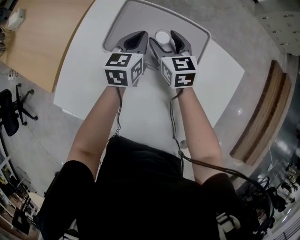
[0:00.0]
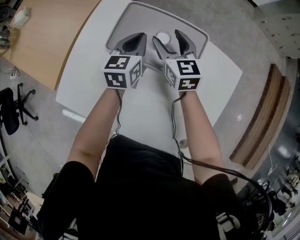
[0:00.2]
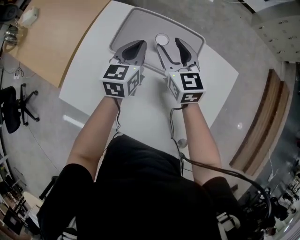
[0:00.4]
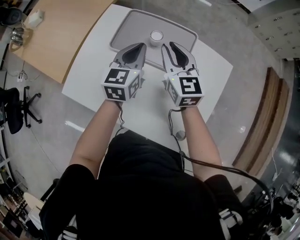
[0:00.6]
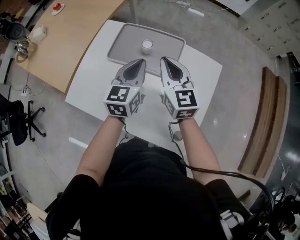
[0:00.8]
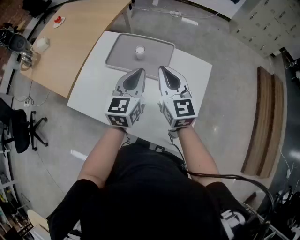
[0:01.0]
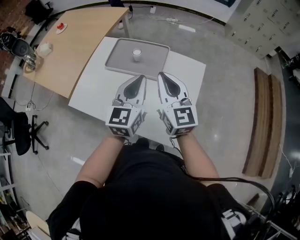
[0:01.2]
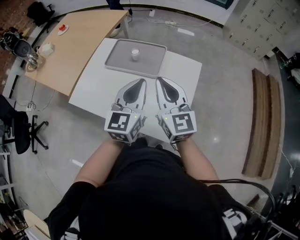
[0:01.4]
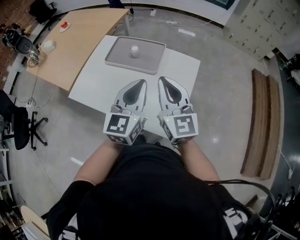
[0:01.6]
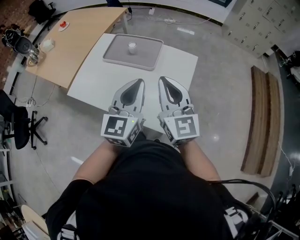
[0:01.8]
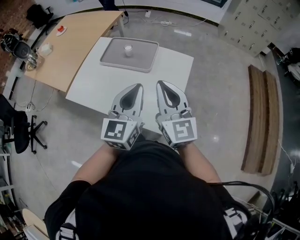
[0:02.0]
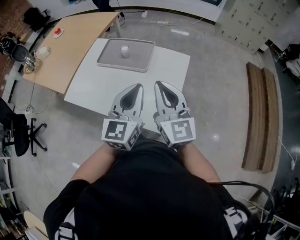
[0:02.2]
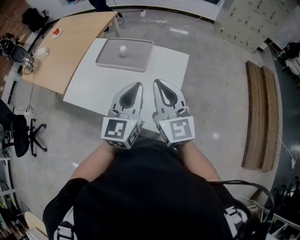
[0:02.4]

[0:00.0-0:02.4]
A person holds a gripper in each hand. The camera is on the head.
0:00.0 to 0:01.2: Both grippers travel together backward and upward, about 40 cm. The right gripper changes its angle by some 30 degrees, and closes up, while the left gripper rotates some 20 degrees.
0:01.2 to 0:02.4: Both grippers move backward and to the right, about 15 cm.

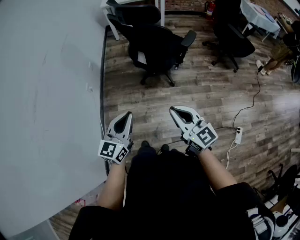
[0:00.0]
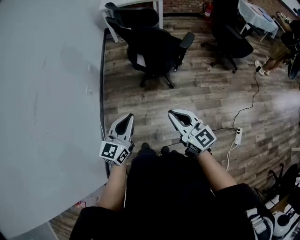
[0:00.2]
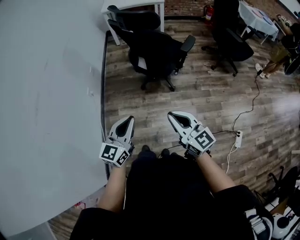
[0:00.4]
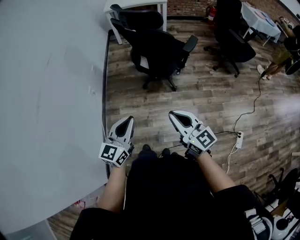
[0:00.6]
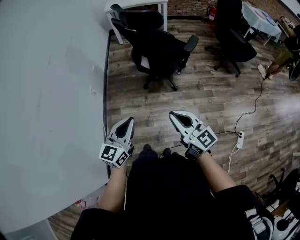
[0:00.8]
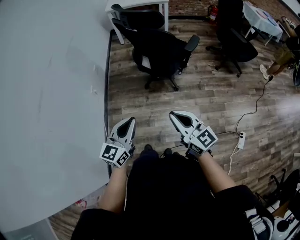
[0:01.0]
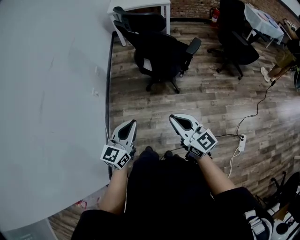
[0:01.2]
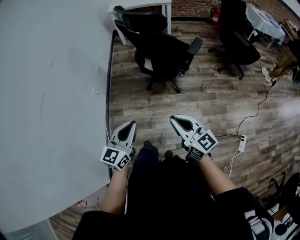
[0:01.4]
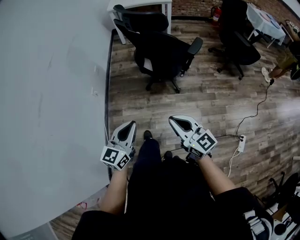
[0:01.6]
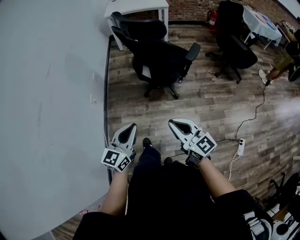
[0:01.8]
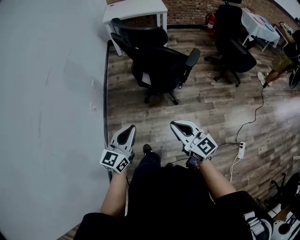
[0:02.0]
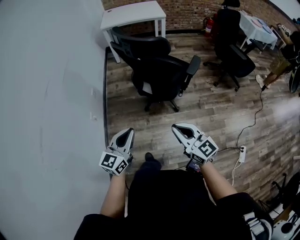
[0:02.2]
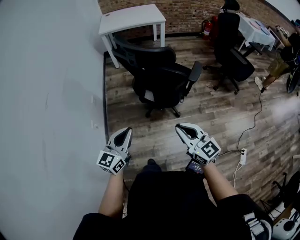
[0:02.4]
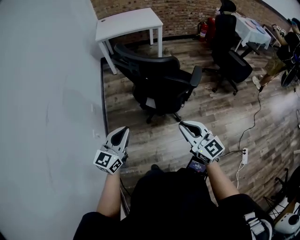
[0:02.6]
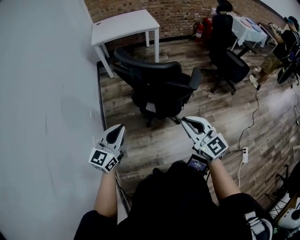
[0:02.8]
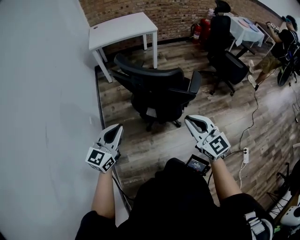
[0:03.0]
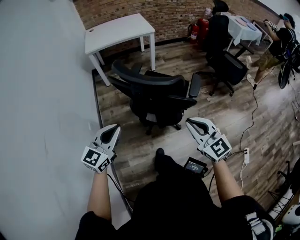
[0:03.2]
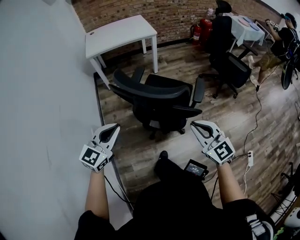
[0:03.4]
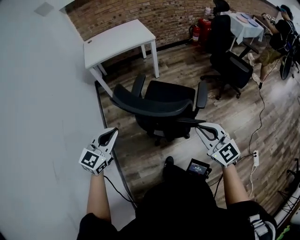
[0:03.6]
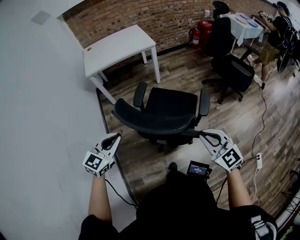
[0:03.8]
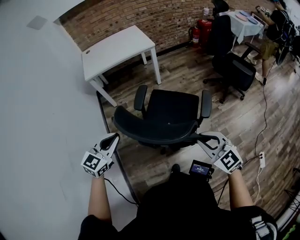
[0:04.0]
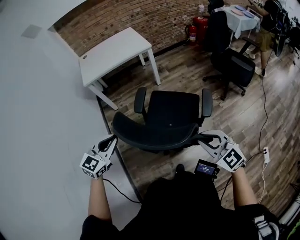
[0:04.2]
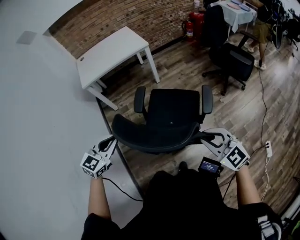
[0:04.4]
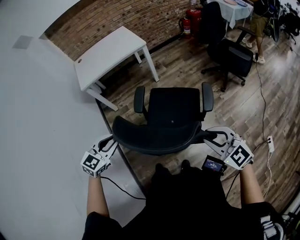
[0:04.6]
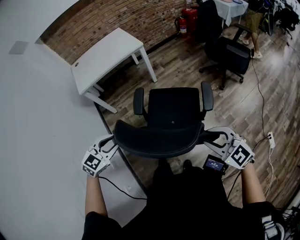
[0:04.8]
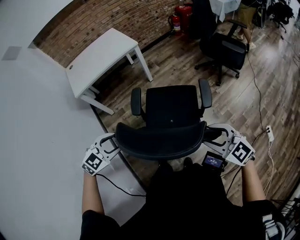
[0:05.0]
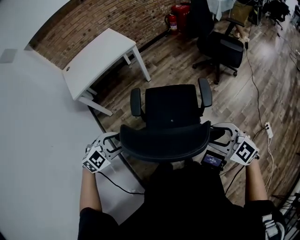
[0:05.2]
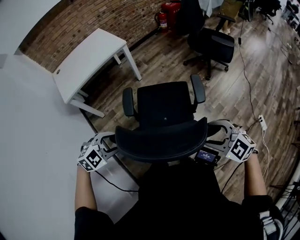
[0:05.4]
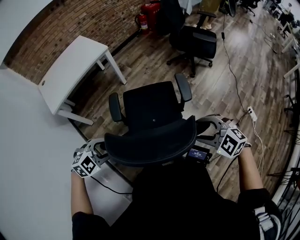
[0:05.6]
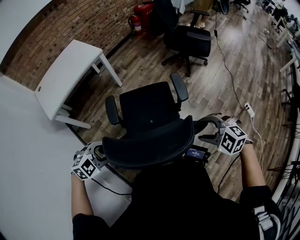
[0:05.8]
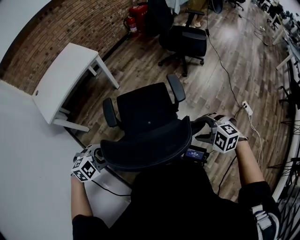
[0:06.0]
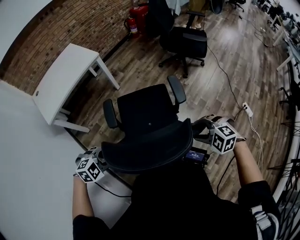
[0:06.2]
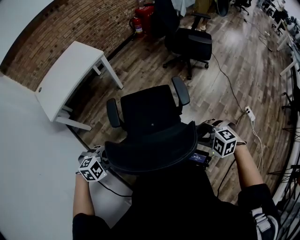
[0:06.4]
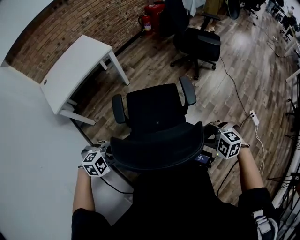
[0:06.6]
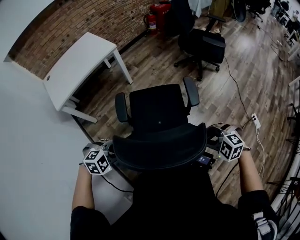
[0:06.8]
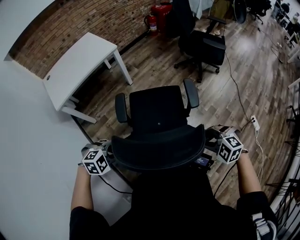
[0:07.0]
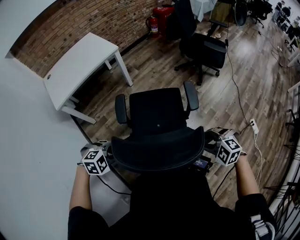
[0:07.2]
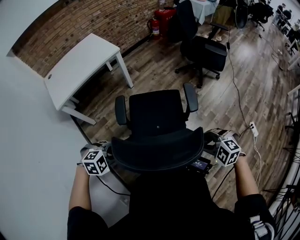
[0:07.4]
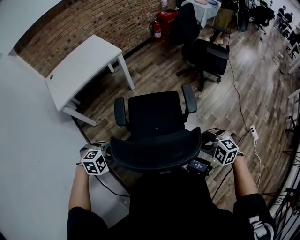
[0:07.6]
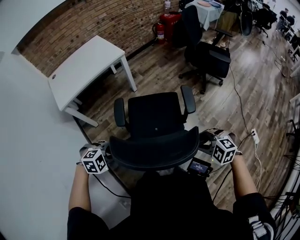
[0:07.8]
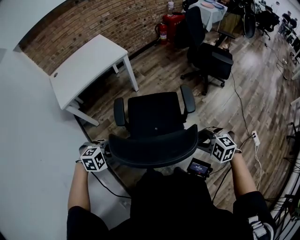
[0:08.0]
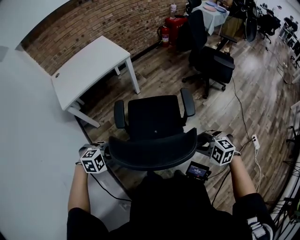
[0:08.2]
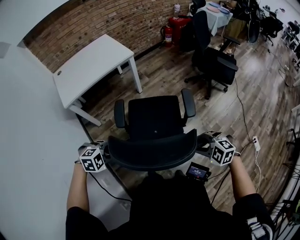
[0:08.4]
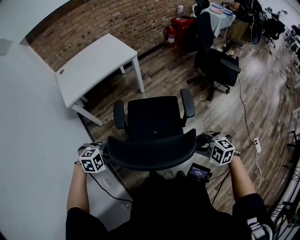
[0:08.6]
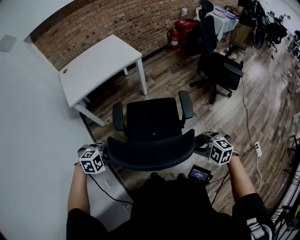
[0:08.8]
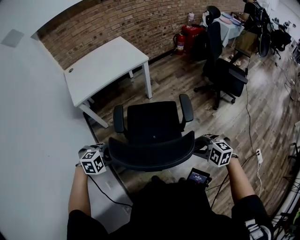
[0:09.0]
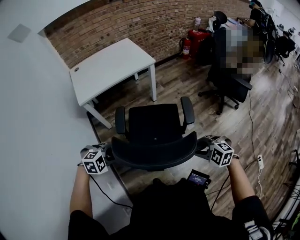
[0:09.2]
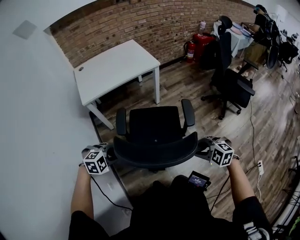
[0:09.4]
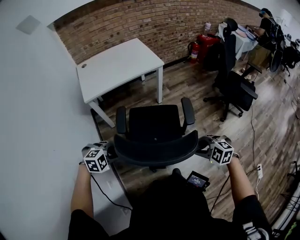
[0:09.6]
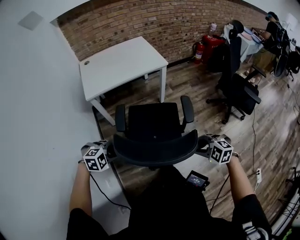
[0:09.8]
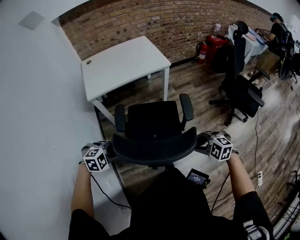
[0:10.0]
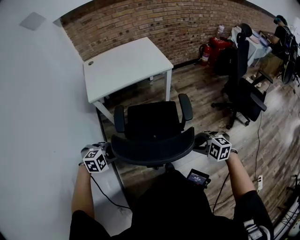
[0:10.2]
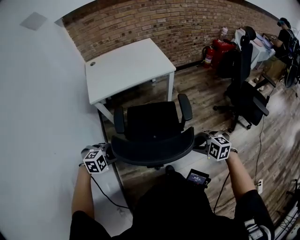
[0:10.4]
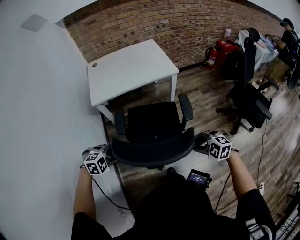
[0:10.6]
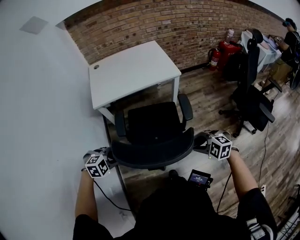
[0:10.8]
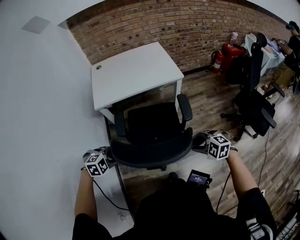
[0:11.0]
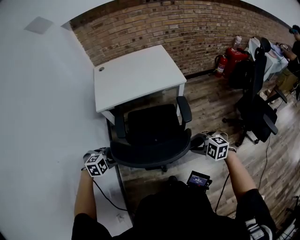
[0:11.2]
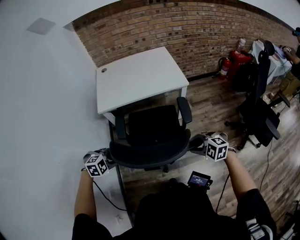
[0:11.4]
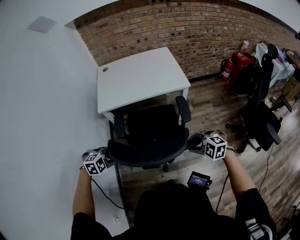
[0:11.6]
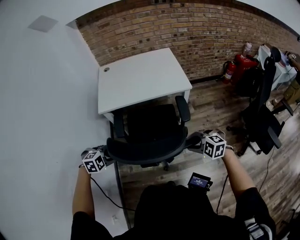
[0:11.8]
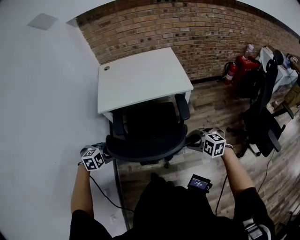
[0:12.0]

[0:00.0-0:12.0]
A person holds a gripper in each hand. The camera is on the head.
0:00.0 to 0:01.6: The grippers stay close to where they were, moving slightly.
0:01.6 to 0:03.0: The grippers both shift forward by some 35 cm. The right gripper rotates approximately 30 degrees.
0:03.0 to 0:04.4: The right gripper travels forward by some 20 cm. The left gripper travels forward by approximately 30 cm, and swivels approximately 30 degrees.
0:04.4 to 0:06.0: Both grippers travel together downward, roughly 10 cm. The left gripper angles its fingers downward, by some 30 degrees, and opens its fingers; the right gripper tips its fingers downward by about 40 degrees, and opens.
0:06.0 to 0:07.6: The right gripper closes. The left gripper closes its fingers.
0:07.6 to 0:09.0: The left gripper shifts by approximately 15 cm. The right gripper changes place by about 15 cm.
0:09.0 to 0:10.4: The left gripper shifts by about 10 cm; the right gripper shifts by approximately 20 cm.
0:10.4 to 0:12.0: The right gripper moves approximately 20 cm, while the left gripper changes place by about 15 cm.

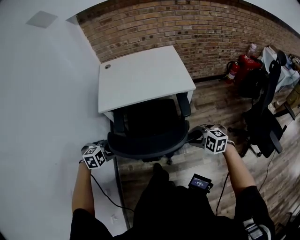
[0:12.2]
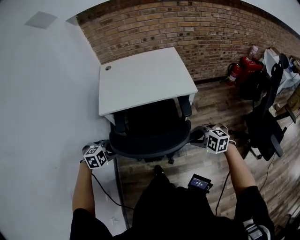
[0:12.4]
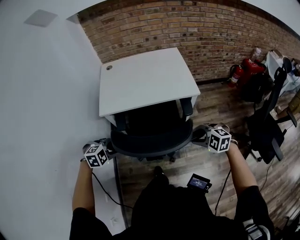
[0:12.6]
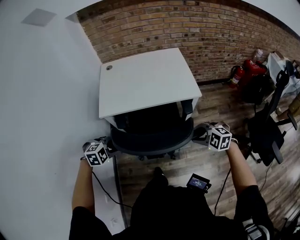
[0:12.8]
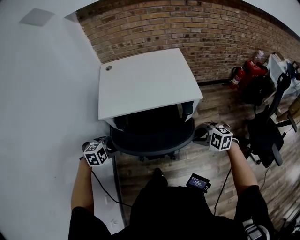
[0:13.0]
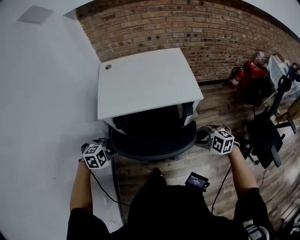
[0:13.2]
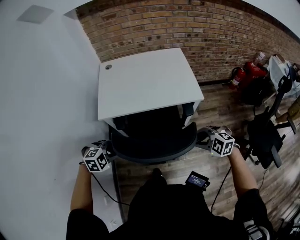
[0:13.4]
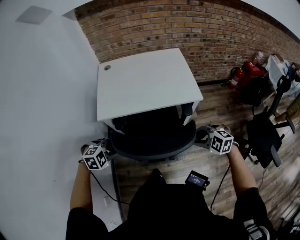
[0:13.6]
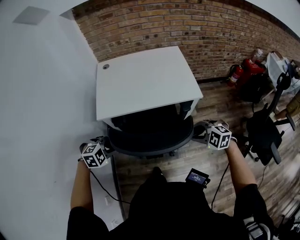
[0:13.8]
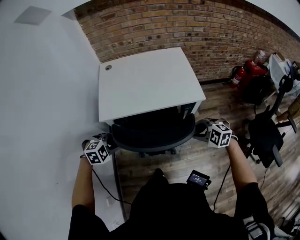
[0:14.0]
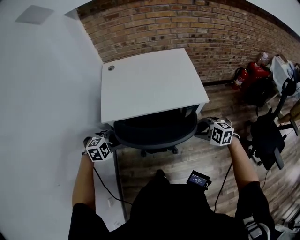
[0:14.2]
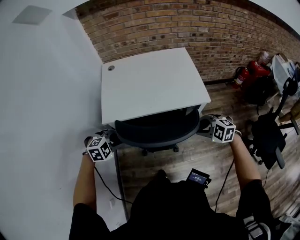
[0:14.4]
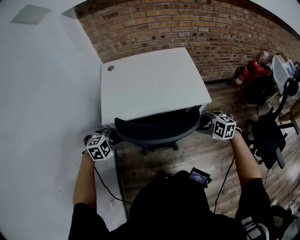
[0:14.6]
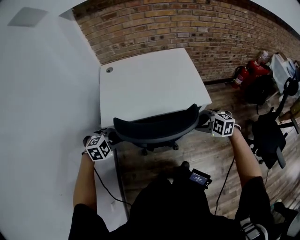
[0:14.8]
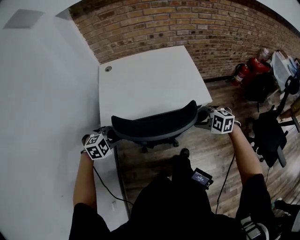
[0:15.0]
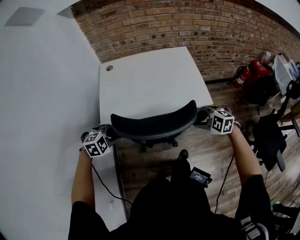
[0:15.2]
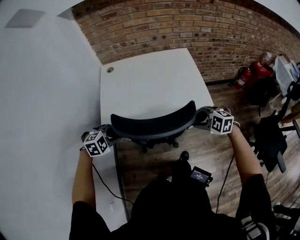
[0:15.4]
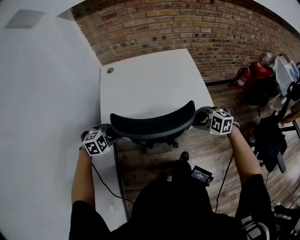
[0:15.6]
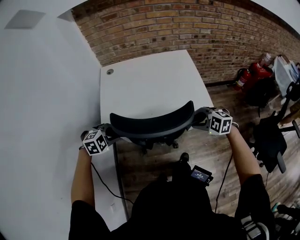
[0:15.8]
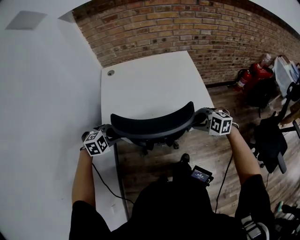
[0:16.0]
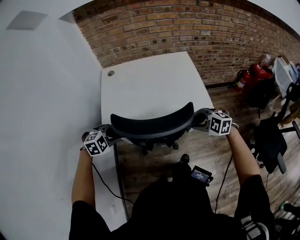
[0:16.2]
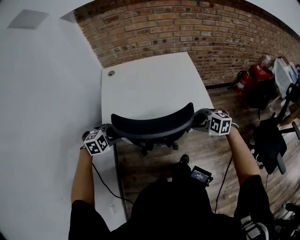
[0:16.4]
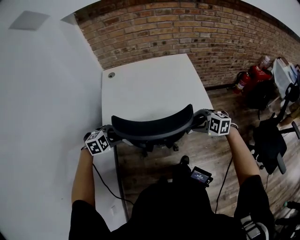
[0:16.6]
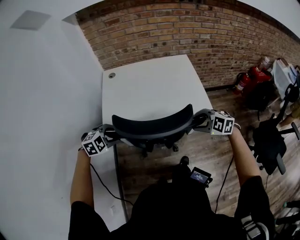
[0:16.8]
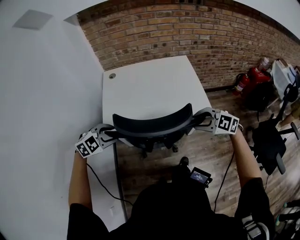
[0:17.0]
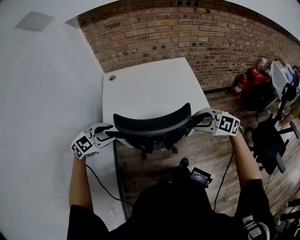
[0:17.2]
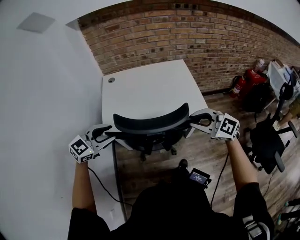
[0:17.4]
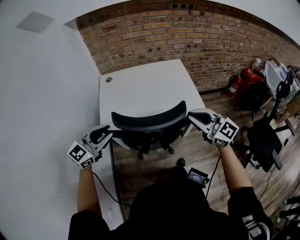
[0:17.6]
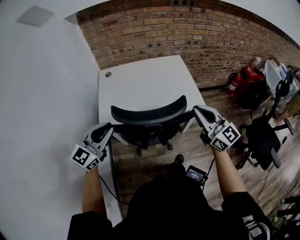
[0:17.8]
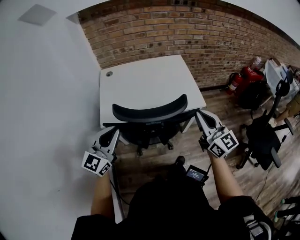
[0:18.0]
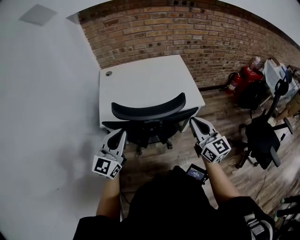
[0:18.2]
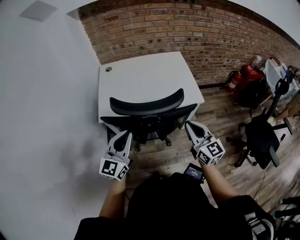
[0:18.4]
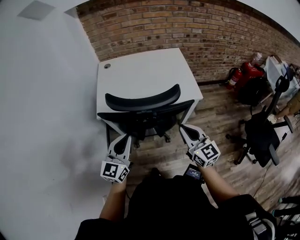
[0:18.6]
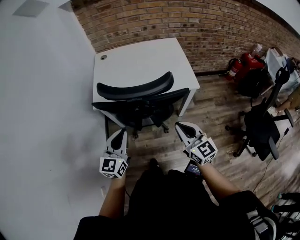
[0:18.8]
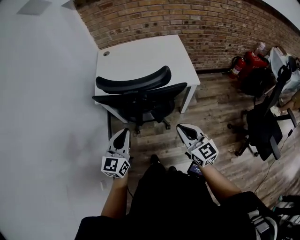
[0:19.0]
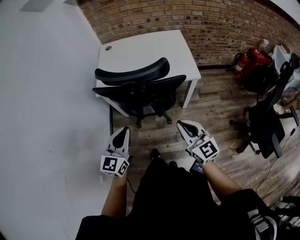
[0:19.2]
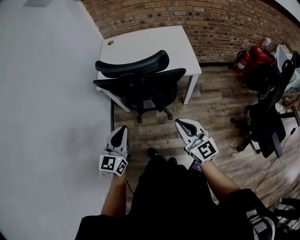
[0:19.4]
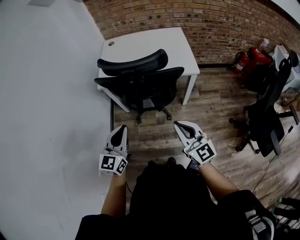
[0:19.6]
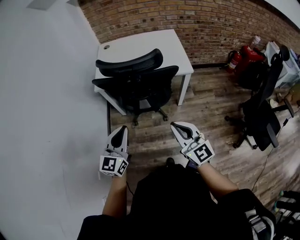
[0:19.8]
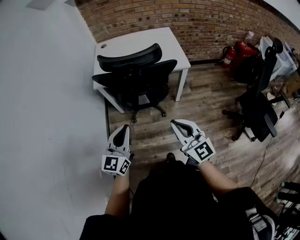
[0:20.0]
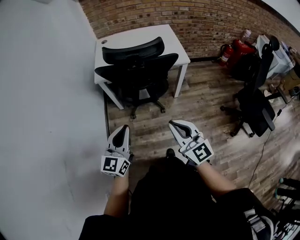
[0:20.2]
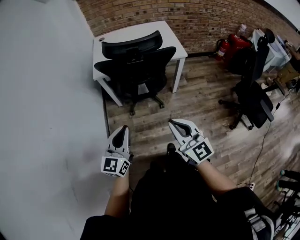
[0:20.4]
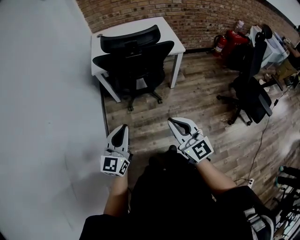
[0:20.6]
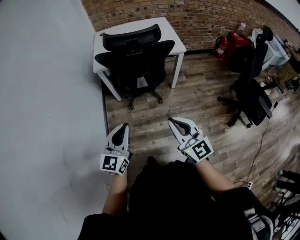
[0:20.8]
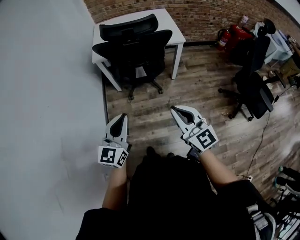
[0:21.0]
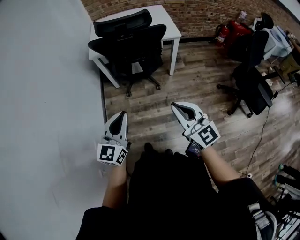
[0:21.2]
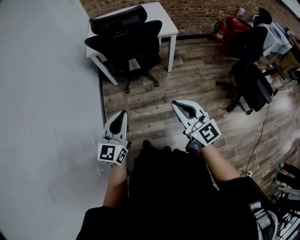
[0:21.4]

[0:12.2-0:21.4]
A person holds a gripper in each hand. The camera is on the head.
0:12.2 to 0:13.8: The left gripper shifts by roughly 15 cm. The right gripper shifts by about 15 cm.
0:13.8 to 0:15.2: The two grippers go approximately 15 cm forward.
0:15.2 to 0:16.8: There are only small adjustments of the grippers.
0:16.8 to 0:18.4: The left gripper is displaced upward, backward and to the right by about 20 cm, points its fingers roughly 60 degrees further upward, and closes its fingers. Meanwhile the right gripper is displaced backward and upward by approximately 15 cm, angles its fingers upward, by roughly 40 degrees, and closes its fingers.
0:18.4 to 0:19.8: Both grippers move backward, some 20 cm.
0:19.8 to 0:21.4: Both grippers travel together backward, some 25 cm.
